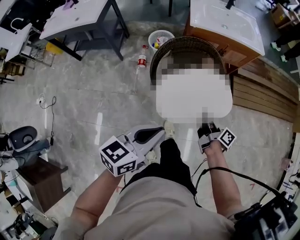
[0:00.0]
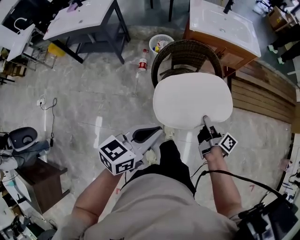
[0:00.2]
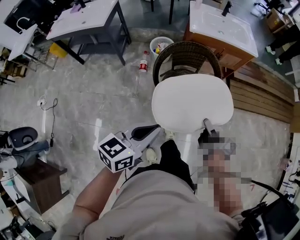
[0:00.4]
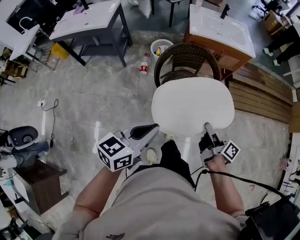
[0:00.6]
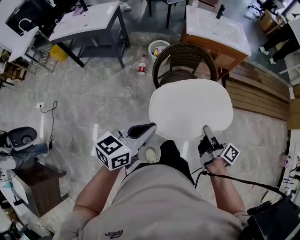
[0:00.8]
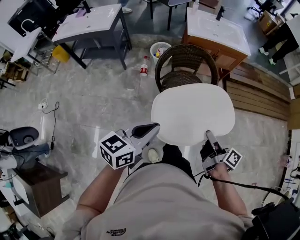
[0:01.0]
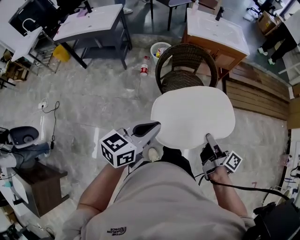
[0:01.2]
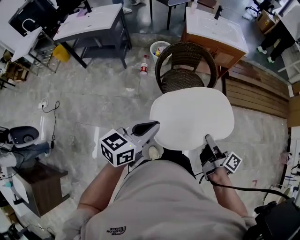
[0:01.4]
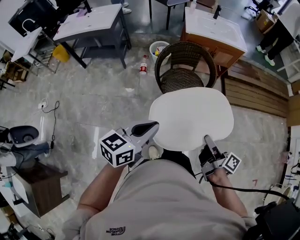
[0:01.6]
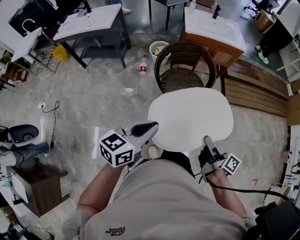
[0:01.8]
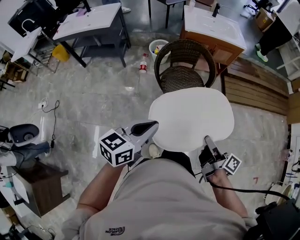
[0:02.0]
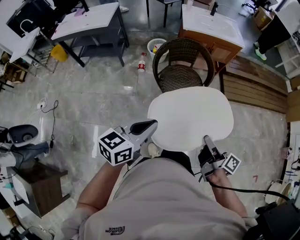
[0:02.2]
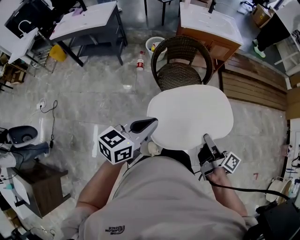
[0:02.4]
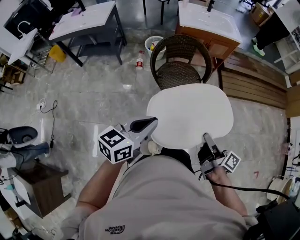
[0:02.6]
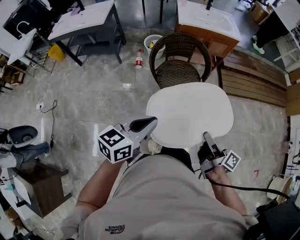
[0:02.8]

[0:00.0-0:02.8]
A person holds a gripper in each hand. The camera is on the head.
0:00.0 to 0:01.4: The left gripper goes approximately 15 cm backward; the right gripper shifts about 30 cm backward and upward.
0:01.4 to 0:02.8: The right gripper is displaced backward by approximately 5 cm.

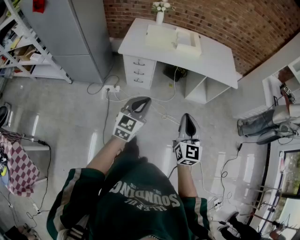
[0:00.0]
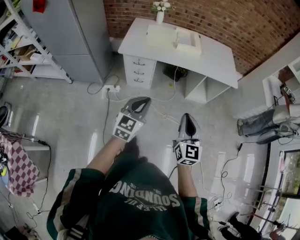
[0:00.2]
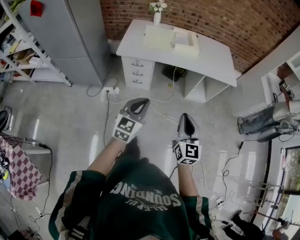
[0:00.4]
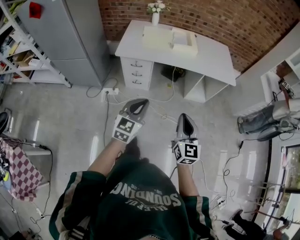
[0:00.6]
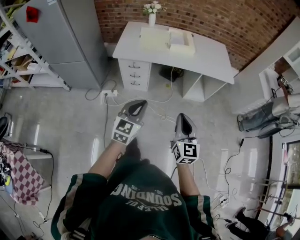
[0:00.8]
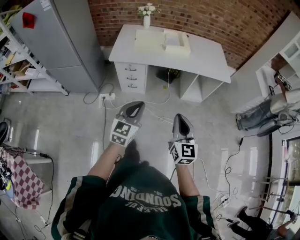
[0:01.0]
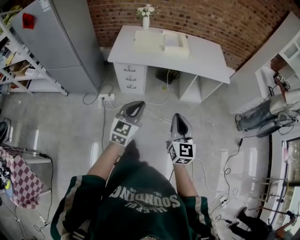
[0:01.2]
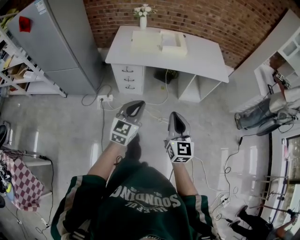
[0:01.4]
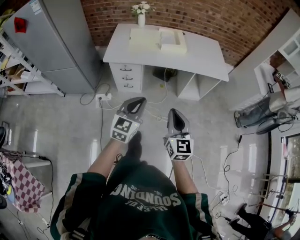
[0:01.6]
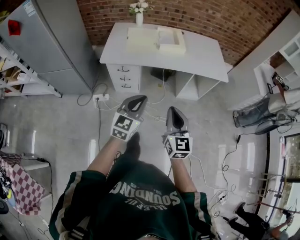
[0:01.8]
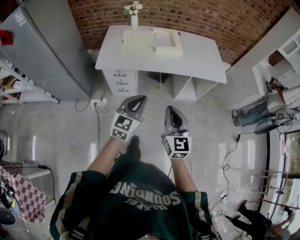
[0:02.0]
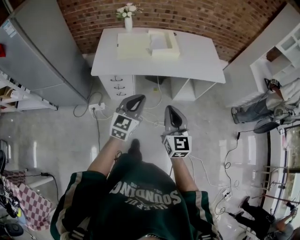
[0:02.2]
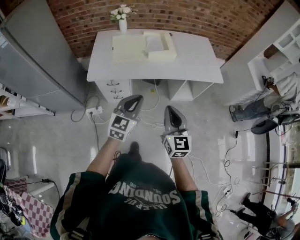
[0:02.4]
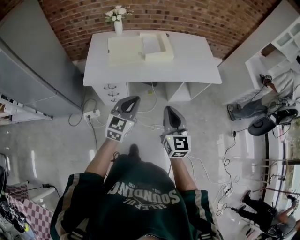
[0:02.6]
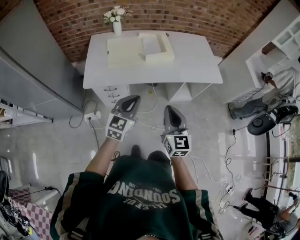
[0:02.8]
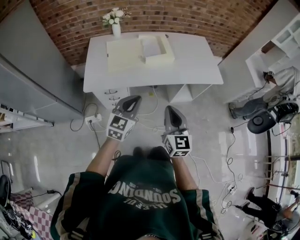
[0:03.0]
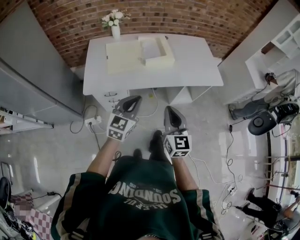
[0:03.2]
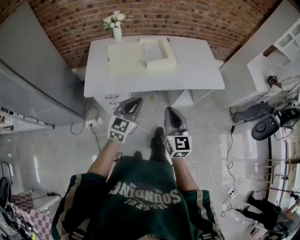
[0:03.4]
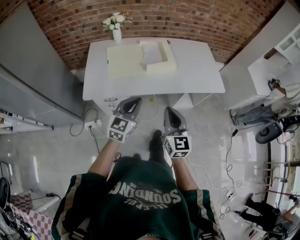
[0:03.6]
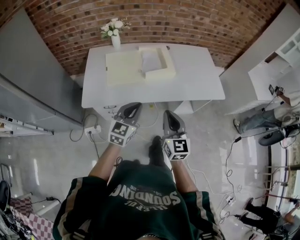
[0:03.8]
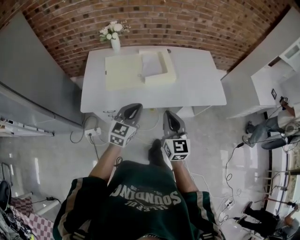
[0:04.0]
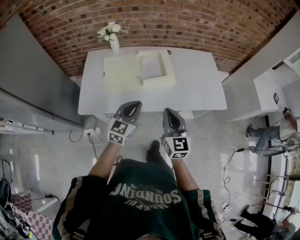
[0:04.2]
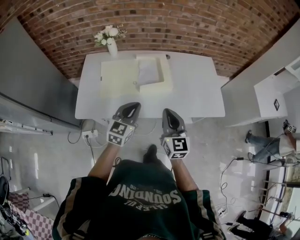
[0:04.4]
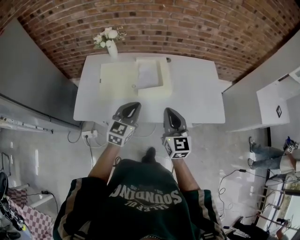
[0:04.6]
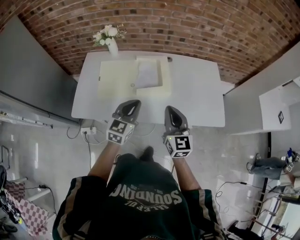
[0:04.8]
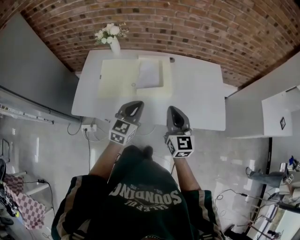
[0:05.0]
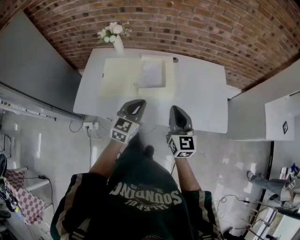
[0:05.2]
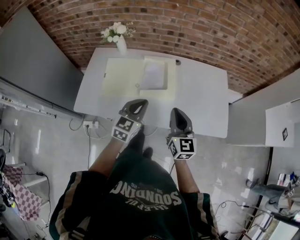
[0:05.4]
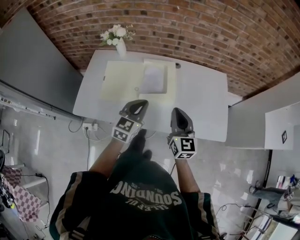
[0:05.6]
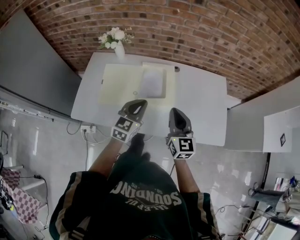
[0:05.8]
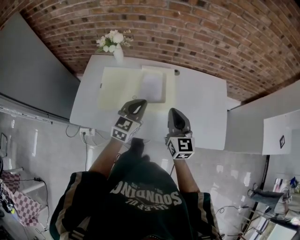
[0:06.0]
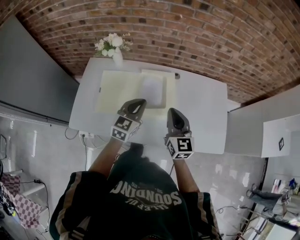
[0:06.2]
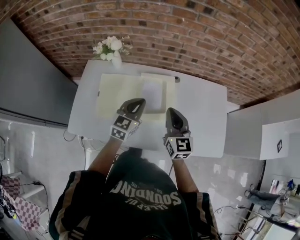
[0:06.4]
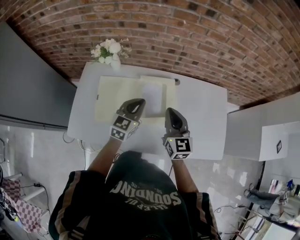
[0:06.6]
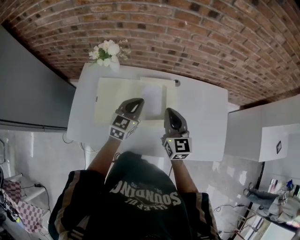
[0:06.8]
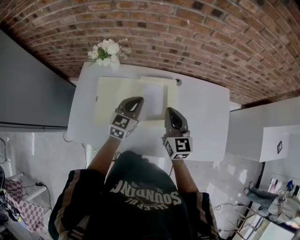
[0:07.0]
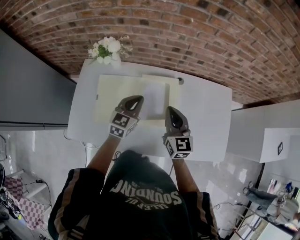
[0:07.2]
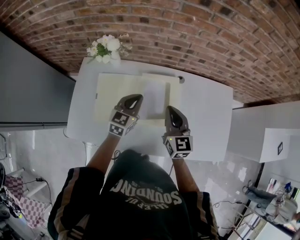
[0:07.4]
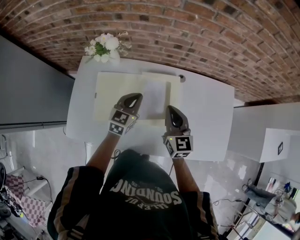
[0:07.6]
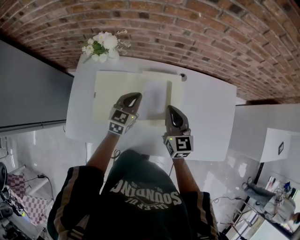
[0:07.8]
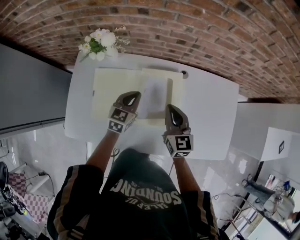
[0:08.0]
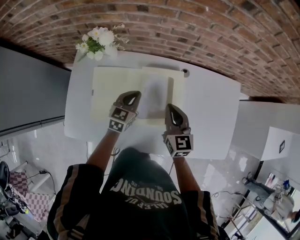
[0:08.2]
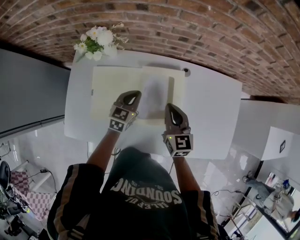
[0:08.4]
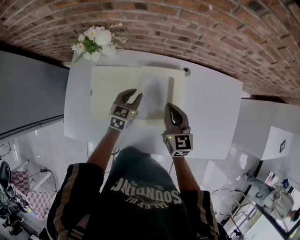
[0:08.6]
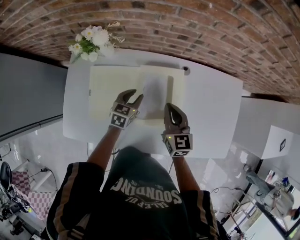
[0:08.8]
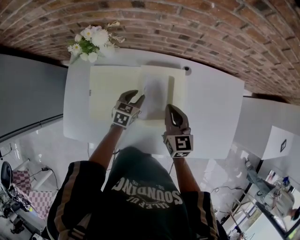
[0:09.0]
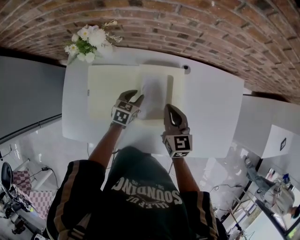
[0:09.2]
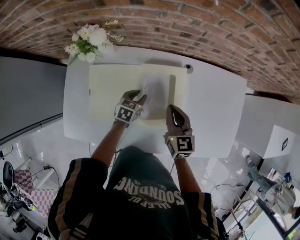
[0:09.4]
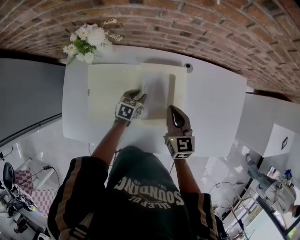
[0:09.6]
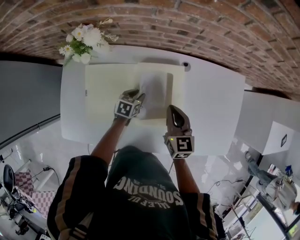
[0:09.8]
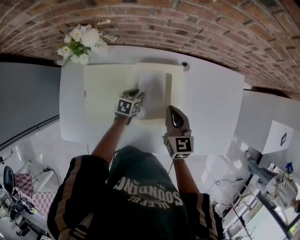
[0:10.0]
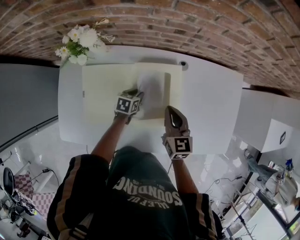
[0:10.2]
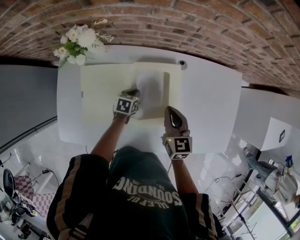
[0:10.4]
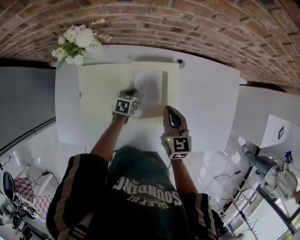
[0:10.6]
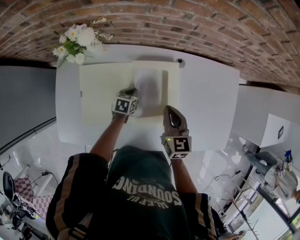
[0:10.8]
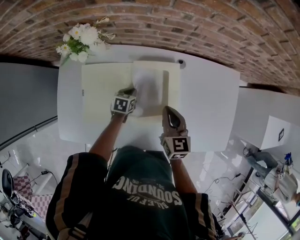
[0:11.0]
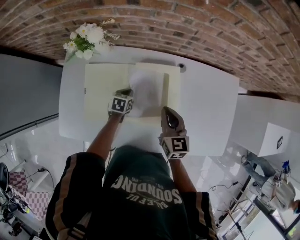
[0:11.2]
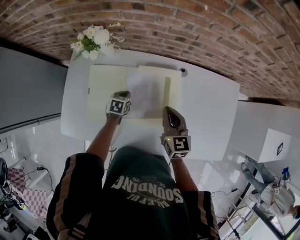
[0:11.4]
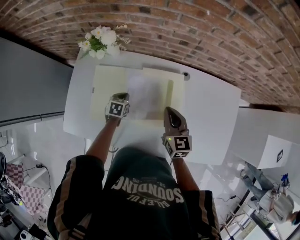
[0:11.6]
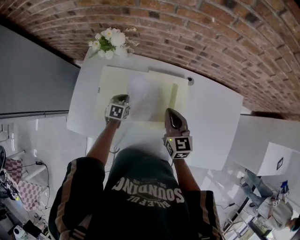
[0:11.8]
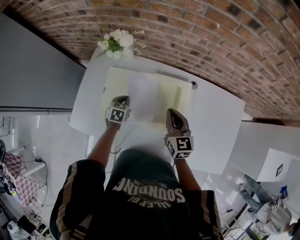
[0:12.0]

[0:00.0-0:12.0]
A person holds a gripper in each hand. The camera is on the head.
0:00.0 to 0:01.6: The left gripper moves approximately 5 cm.
0:01.6 to 0:03.0: The two grippers go some 25 cm forward.
0:03.0 to 0:04.4: Both grippers travel together forward, about 25 cm.
0:04.4 to 0:06.0: Both grippers travel together forward, approximately 20 cm.
0:06.0 to 0:07.6: The left gripper shifts roughly 20 cm forward, downward and to the left, while the right gripper shifts roughly 15 cm forward.
0:07.6 to 0:09.0: The right gripper travels downward by some 10 cm, while the left gripper moves downward, about 15 cm, rotates roughly 20 degrees, and opens.
0:09.0 to 0:10.4: The left gripper heads downward, covering approximately 10 cm, and closes.
0:10.4 to 0:12.0: The left gripper ends up approximately 15 cm from where it was, and rotates some 20 degrees. Meanwhile the right gripper heads upward, covering some 5 cm.

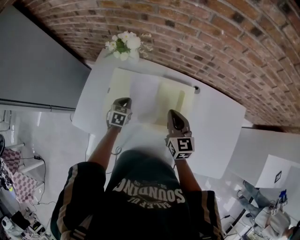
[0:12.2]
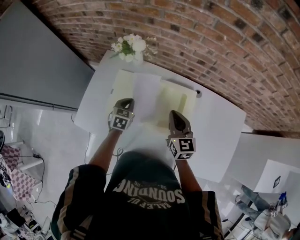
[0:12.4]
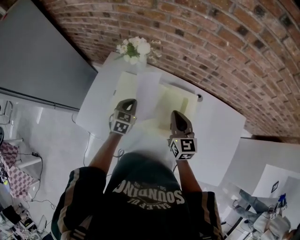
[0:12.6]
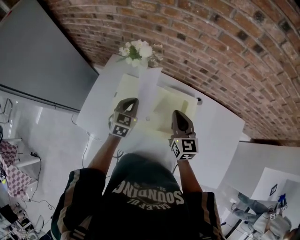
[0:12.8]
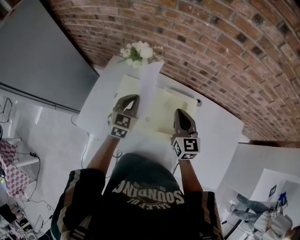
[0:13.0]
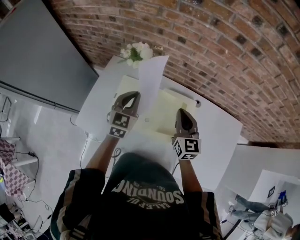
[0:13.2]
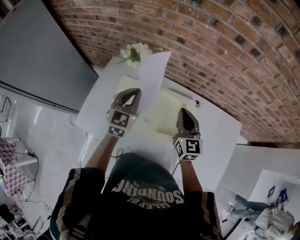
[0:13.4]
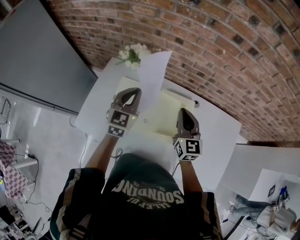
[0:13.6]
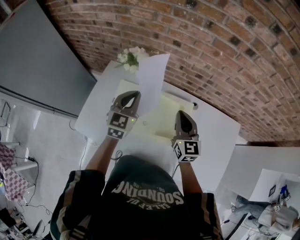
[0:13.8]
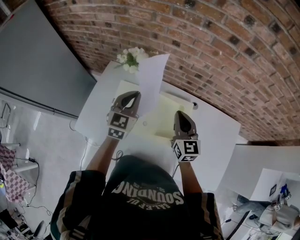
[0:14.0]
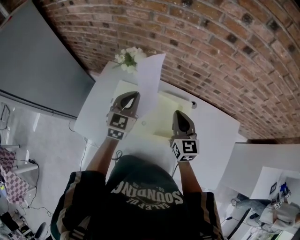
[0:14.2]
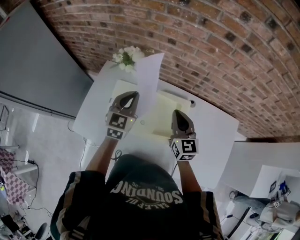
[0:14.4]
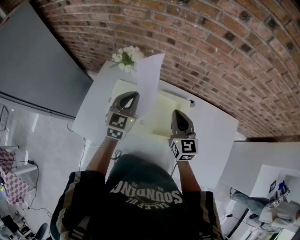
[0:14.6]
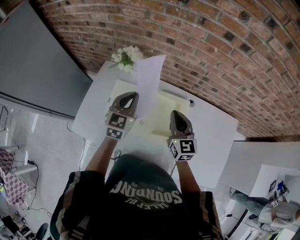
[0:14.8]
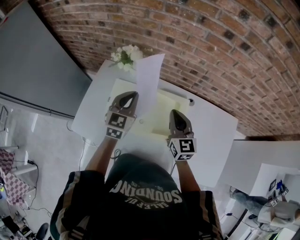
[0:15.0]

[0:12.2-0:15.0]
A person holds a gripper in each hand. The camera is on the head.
0:12.2 to 0:13.6: The left gripper is displaced upward by approximately 25 cm, and angles its fingers upward, by some 30 degrees. The right gripper heads upward, covering roughly 10 cm.
0:13.6 to 0:15.0: The grippers move only a little.

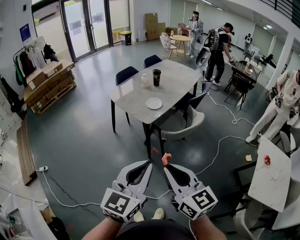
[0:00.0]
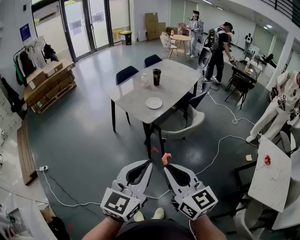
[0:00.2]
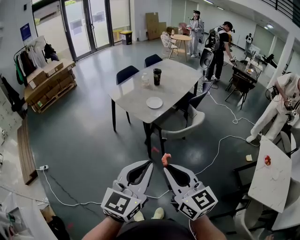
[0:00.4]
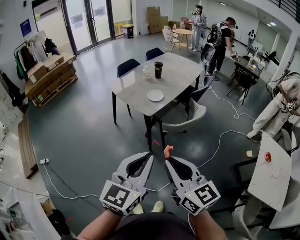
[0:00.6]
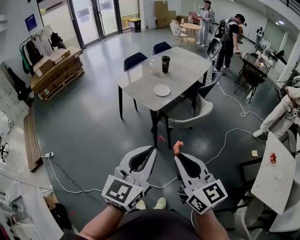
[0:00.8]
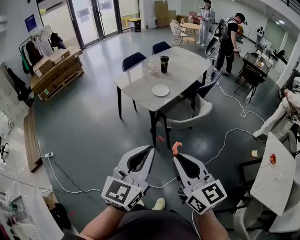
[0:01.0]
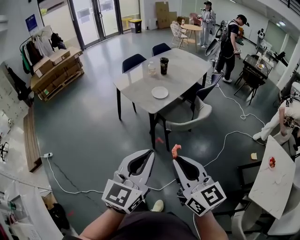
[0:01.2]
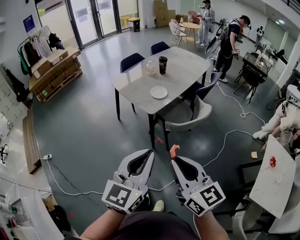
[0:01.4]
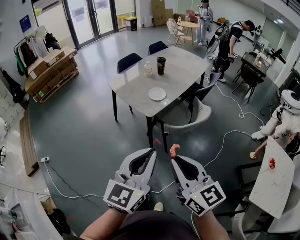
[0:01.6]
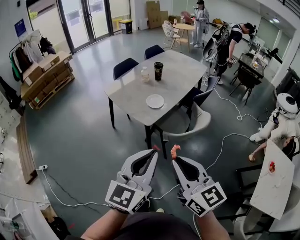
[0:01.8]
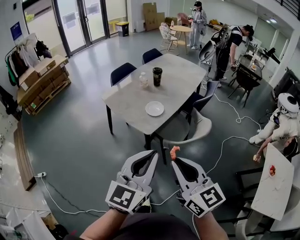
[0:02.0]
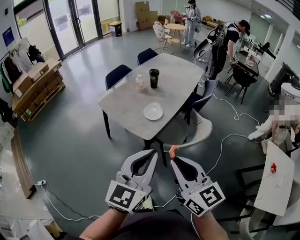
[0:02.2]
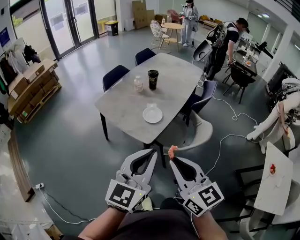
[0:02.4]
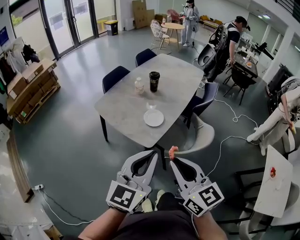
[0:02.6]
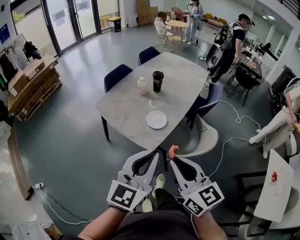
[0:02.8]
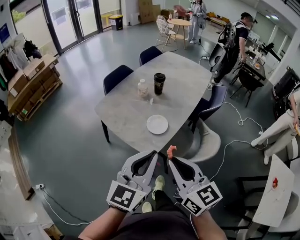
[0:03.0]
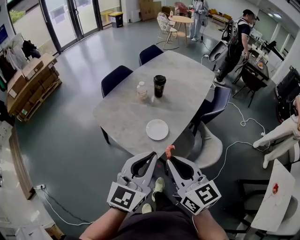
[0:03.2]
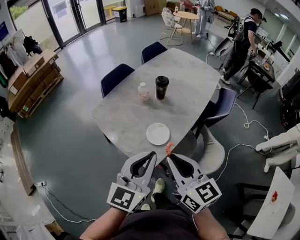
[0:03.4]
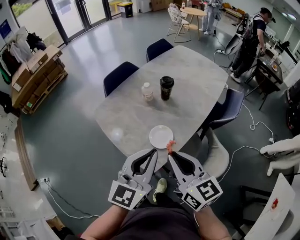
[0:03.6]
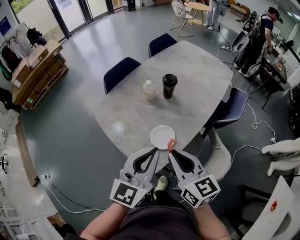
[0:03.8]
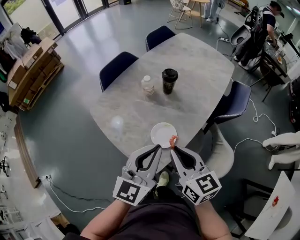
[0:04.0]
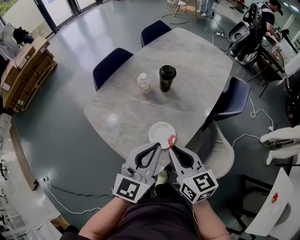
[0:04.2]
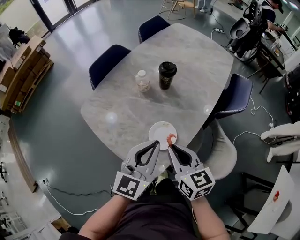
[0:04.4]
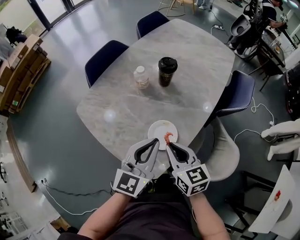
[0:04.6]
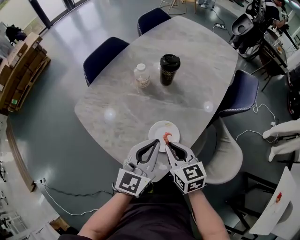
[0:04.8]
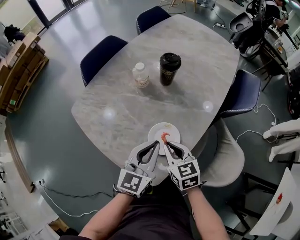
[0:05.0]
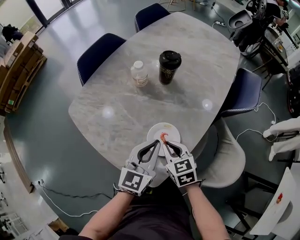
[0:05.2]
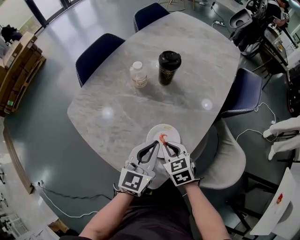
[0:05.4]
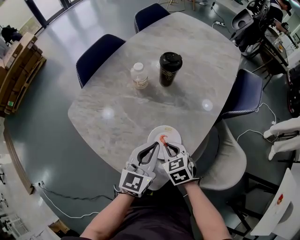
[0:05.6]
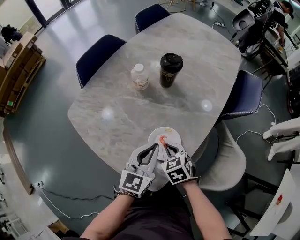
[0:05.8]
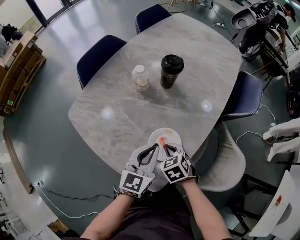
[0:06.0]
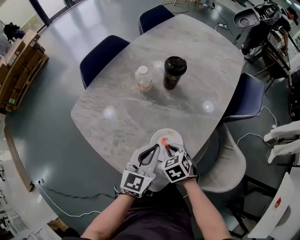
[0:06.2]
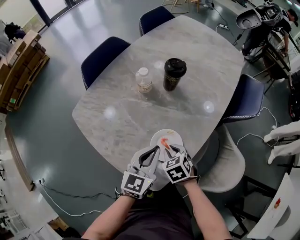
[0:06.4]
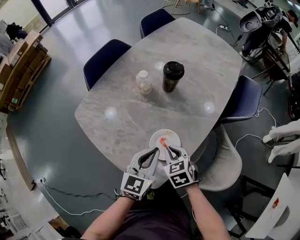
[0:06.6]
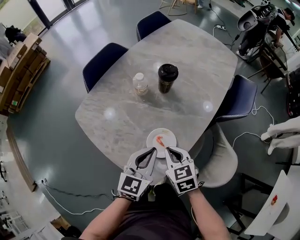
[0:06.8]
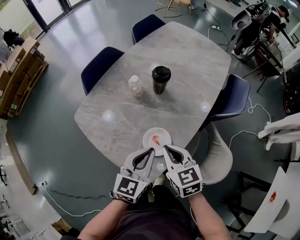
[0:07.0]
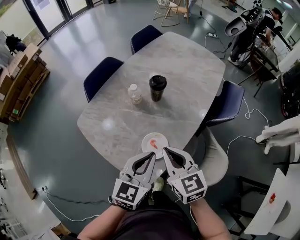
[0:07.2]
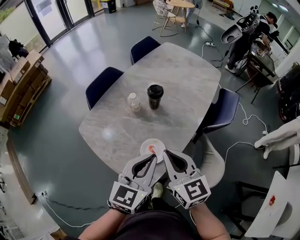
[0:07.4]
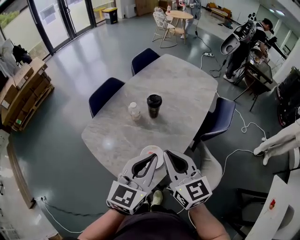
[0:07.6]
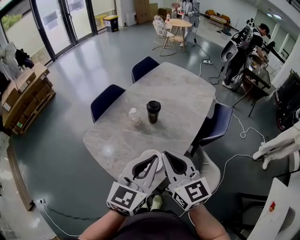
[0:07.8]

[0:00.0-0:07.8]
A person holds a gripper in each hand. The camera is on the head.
0:00.0 to 0:01.6: Both grippers travel together forward, approximately 10 cm.
0:01.6 to 0:03.2: The grippers both shift forward by approximately 40 cm.
0:03.2 to 0:04.6: The two grippers go some 30 cm forward and downward.
0:04.6 to 0:06.2: The right gripper moves downward, roughly 20 cm, and tilts its fingers some 40 degrees downward; the left gripper is displaced downward by roughly 10 cm.
0:06.2 to 0:07.8: The two grippers go about 35 cm upward. The right gripper points its fingers approximately 60 degrees further upward.
